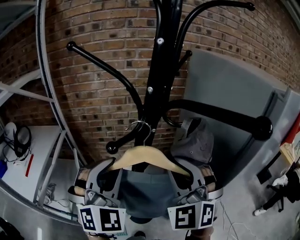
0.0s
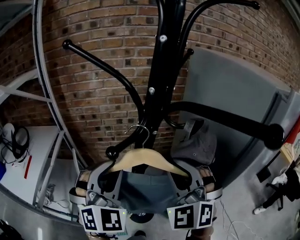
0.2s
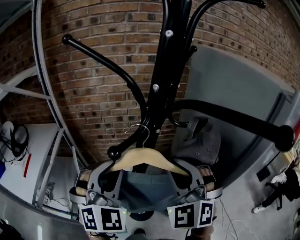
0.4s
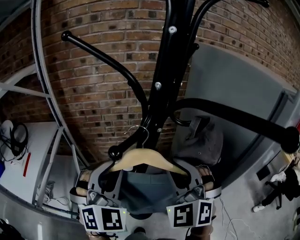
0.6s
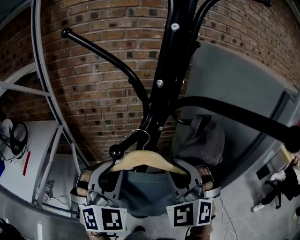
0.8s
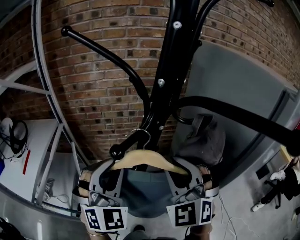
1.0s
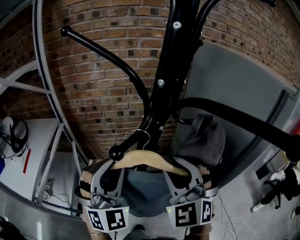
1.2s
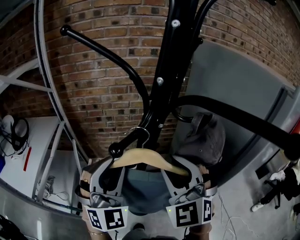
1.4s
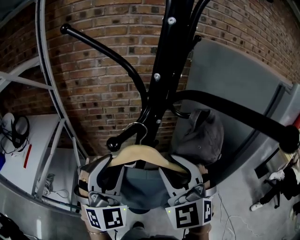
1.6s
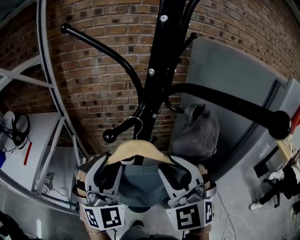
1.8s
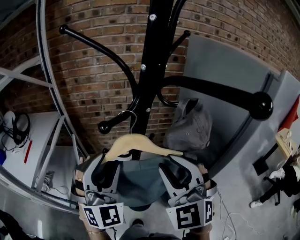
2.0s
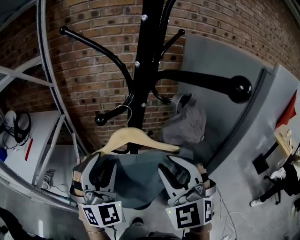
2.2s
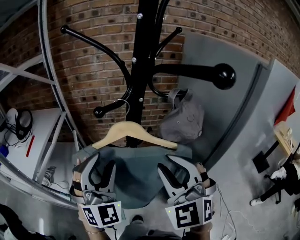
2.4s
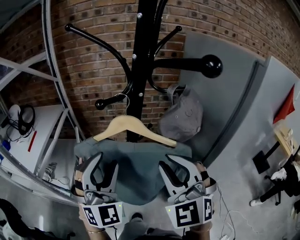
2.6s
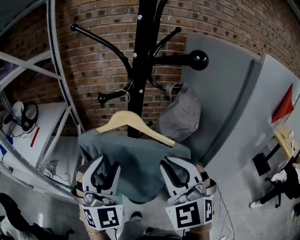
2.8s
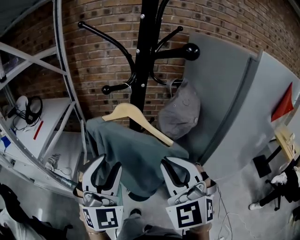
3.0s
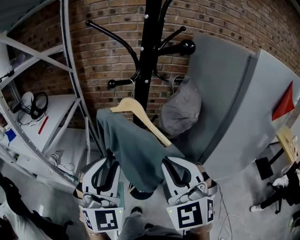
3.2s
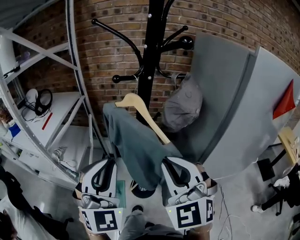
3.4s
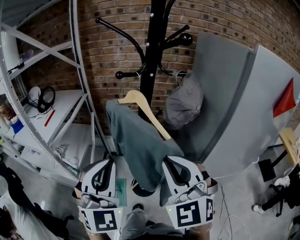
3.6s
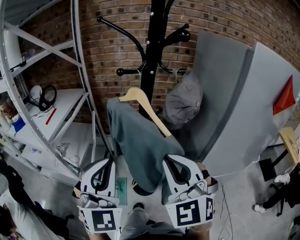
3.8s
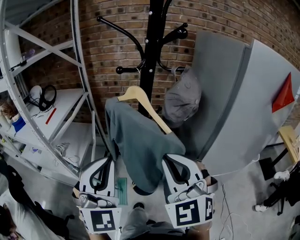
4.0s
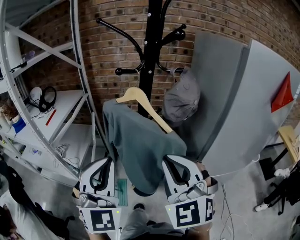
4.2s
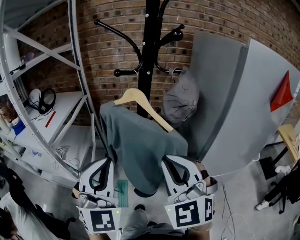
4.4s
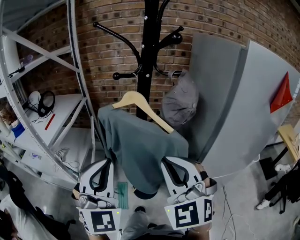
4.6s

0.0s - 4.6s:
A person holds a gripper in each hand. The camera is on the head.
0.0s - 1.6s: The grippers move only a little.
1.6s - 3.0s: The grippers both shift backward by about 15 cm. The right gripper closes up.
3.0s - 4.6s: The grippers both shift backward by about 5 cm. The left gripper closes.

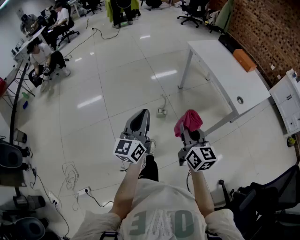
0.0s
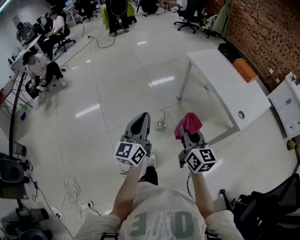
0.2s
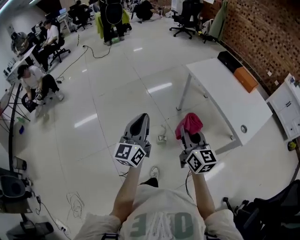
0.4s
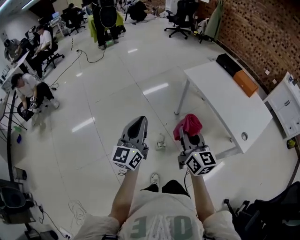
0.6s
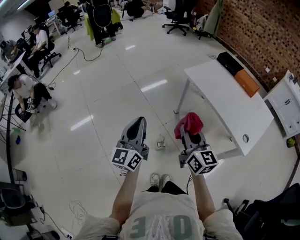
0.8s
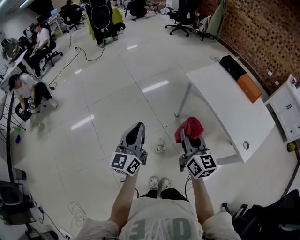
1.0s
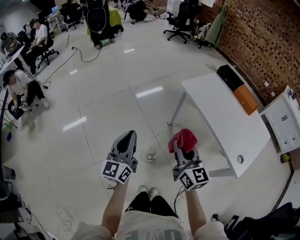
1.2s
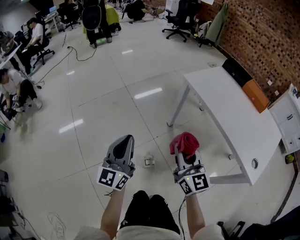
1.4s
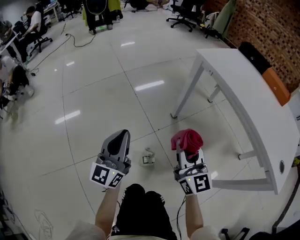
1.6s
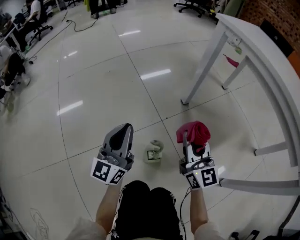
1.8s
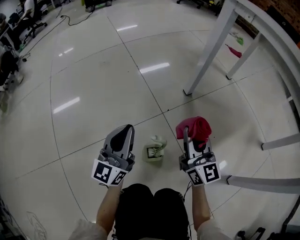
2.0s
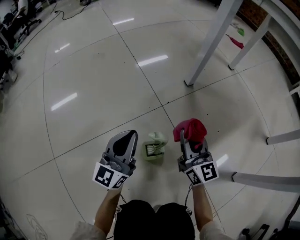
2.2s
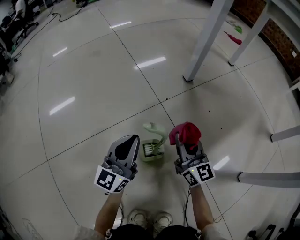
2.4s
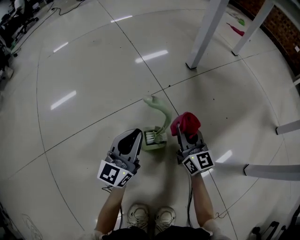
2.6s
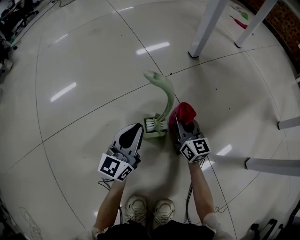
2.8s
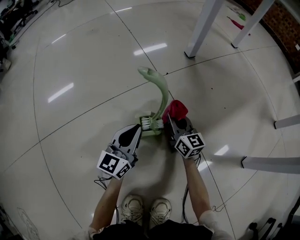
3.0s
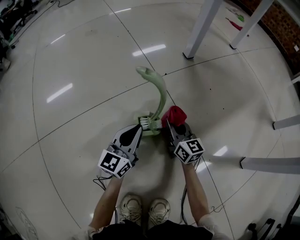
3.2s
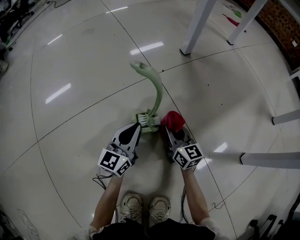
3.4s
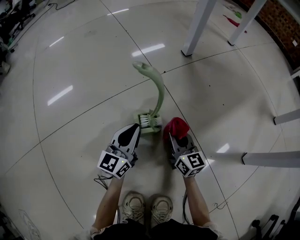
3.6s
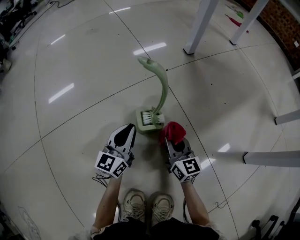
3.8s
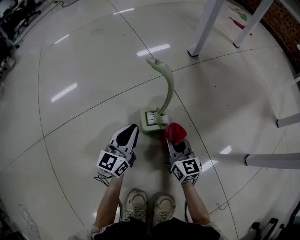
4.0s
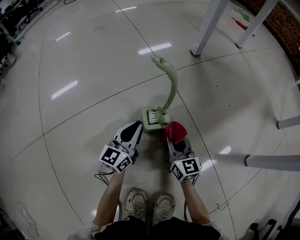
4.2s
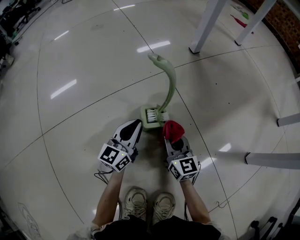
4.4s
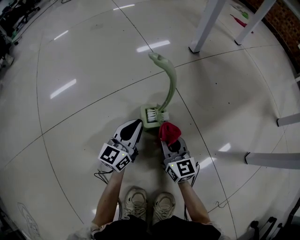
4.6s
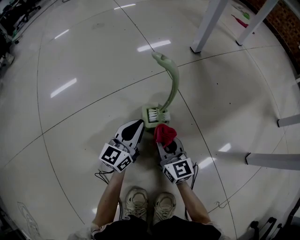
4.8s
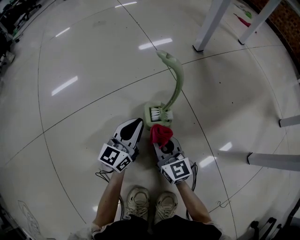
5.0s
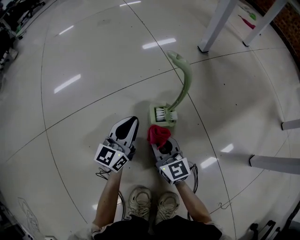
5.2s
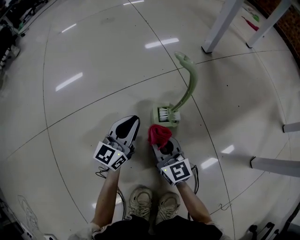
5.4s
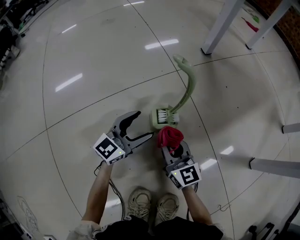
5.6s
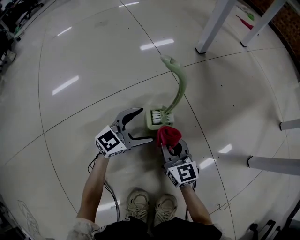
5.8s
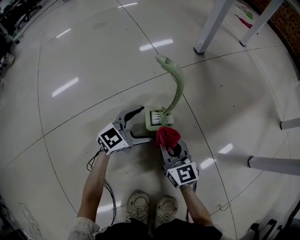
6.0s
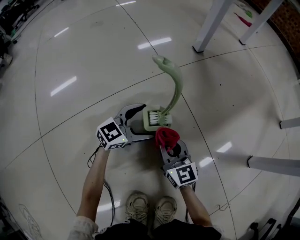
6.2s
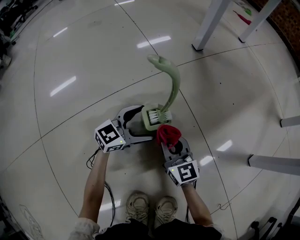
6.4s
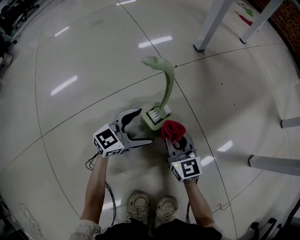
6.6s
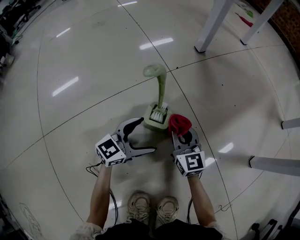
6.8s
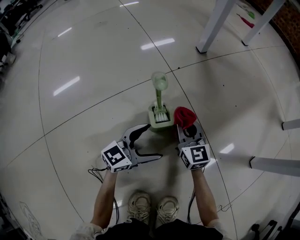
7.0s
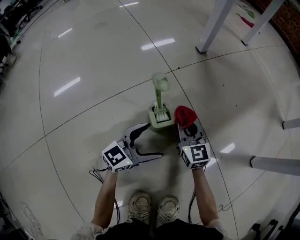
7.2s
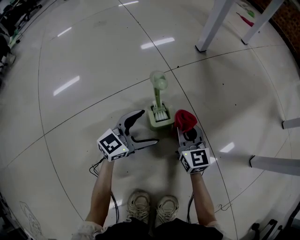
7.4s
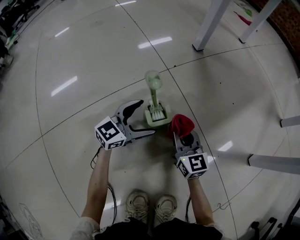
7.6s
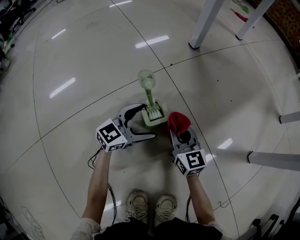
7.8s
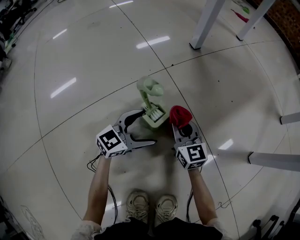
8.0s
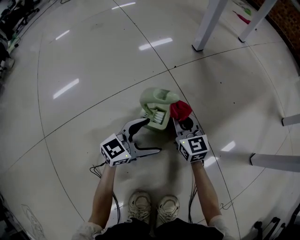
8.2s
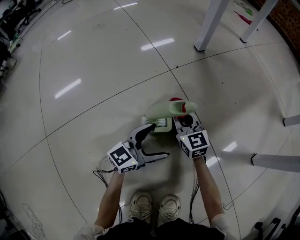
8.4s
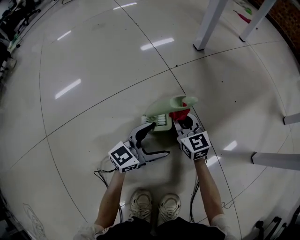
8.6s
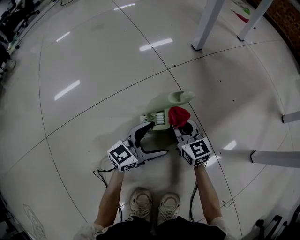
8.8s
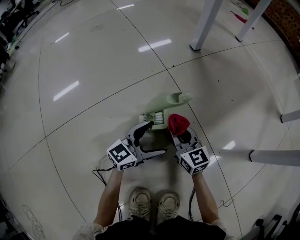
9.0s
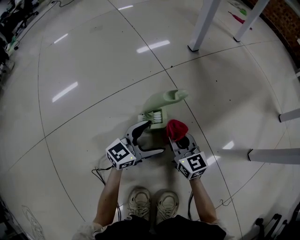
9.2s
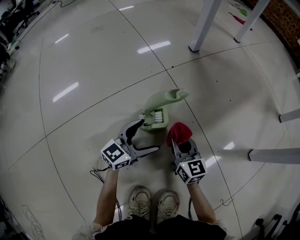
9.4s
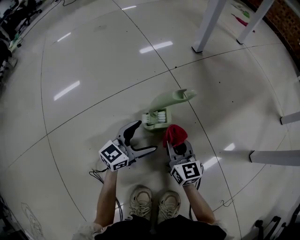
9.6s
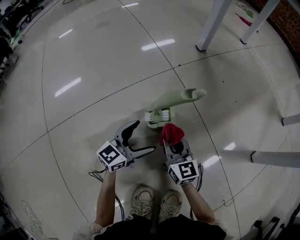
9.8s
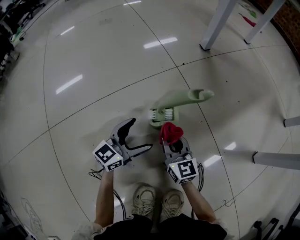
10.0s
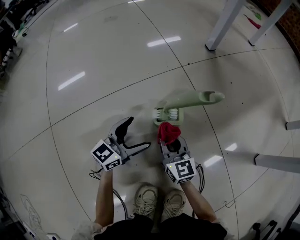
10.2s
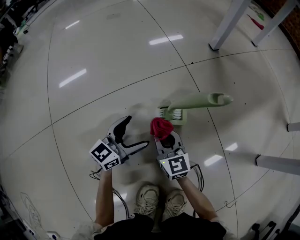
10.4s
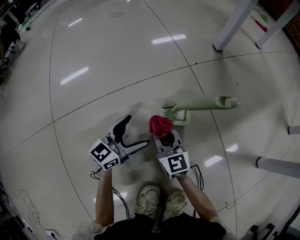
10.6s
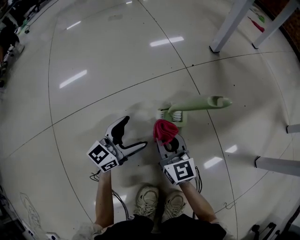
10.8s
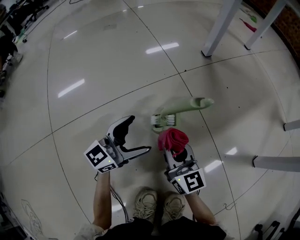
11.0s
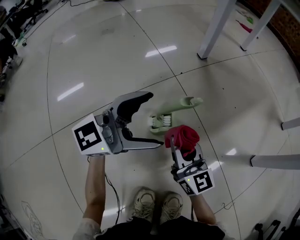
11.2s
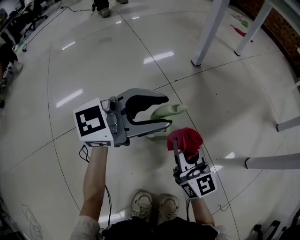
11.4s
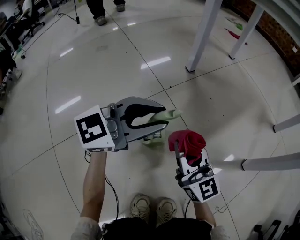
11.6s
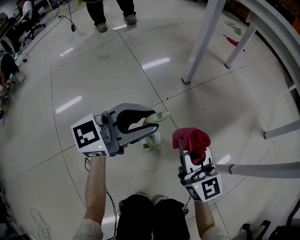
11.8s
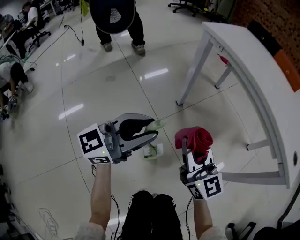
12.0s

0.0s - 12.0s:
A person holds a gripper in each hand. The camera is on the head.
0.0s - 1.6s: Both grippers are carried forward, some 50 cm. Both grippers travel together downward, approximately 30 cm. The right gripper turns by approximately 20 degrees.
1.6s - 3.0s: The grippers both shift downward by some 60 cm. The right gripper rotates roughly 20 degrees.
3.0s - 4.4s: The right gripper is displaced backward by some 10 cm.
4.4s - 6.0s: The left gripper turns by approximately 40 degrees, and opens up.
6.0s - 7.6s: The right gripper is displaced forward by about 5 cm.
7.6s - 9.0s: The left gripper is displaced backward and to the right by some 10 cm.
9.0s - 10.4s: The right gripper moves to the left and backward, approximately 15 cm; the left gripper travels to the left by some 15 cm.
10.4s - 12.0s: The grippers both shift upward by about 60 cm. The left gripper rotates some 30 degrees, and closes its fingers; the right gripper swivels approximately 20 degrees.

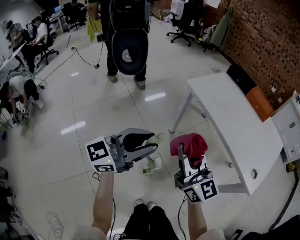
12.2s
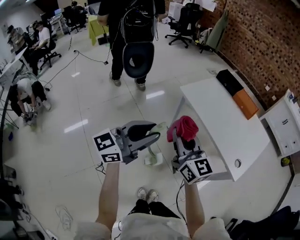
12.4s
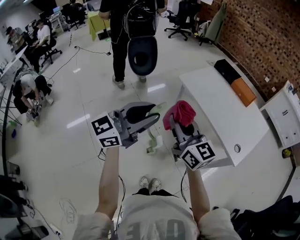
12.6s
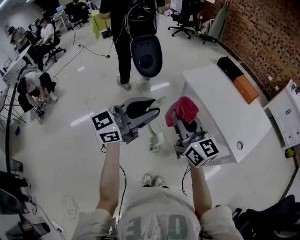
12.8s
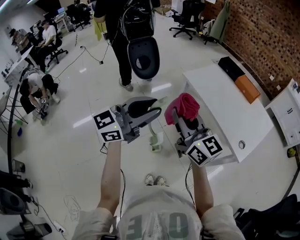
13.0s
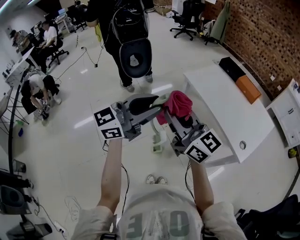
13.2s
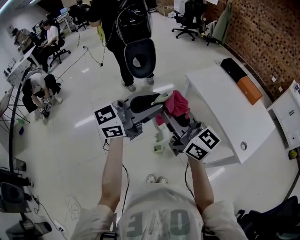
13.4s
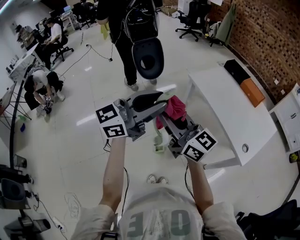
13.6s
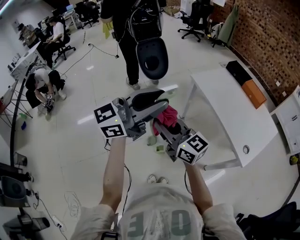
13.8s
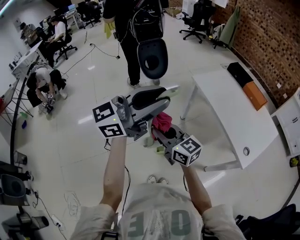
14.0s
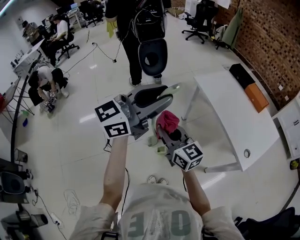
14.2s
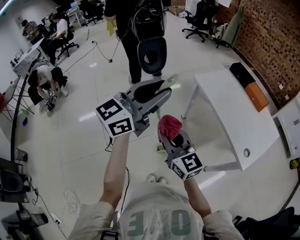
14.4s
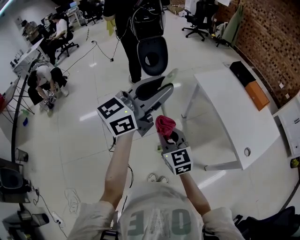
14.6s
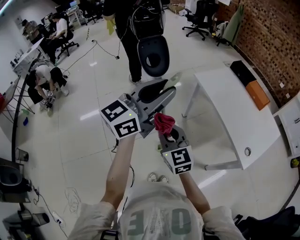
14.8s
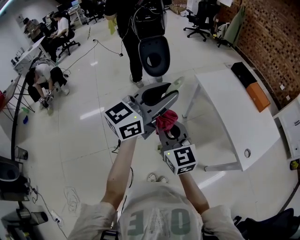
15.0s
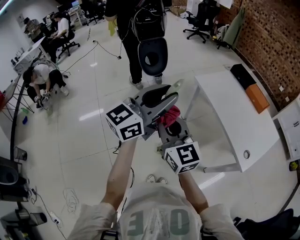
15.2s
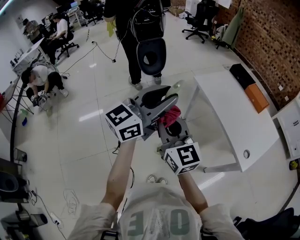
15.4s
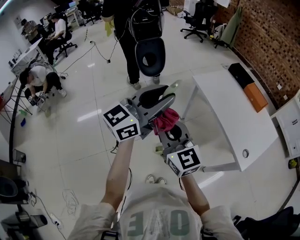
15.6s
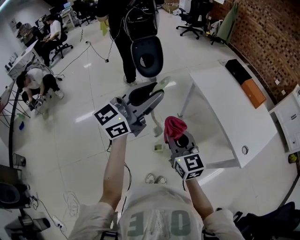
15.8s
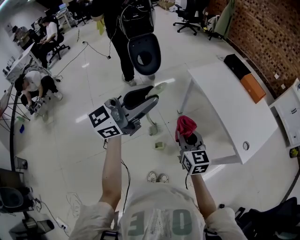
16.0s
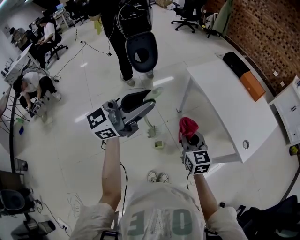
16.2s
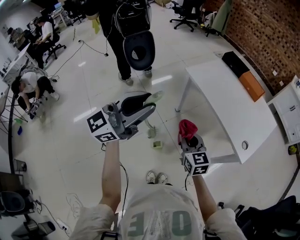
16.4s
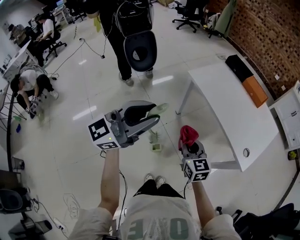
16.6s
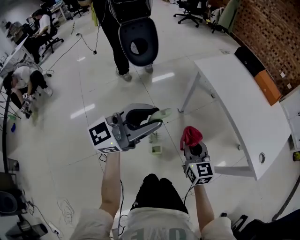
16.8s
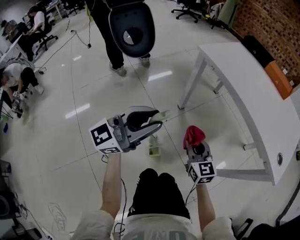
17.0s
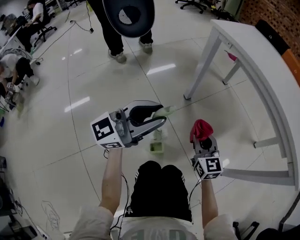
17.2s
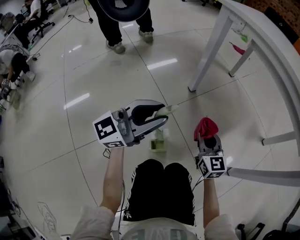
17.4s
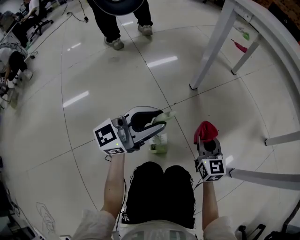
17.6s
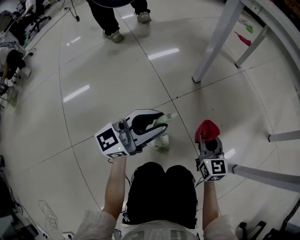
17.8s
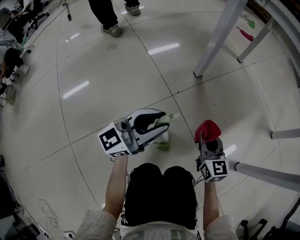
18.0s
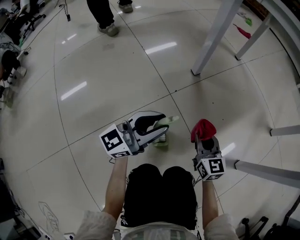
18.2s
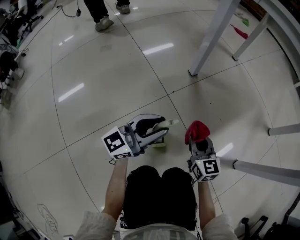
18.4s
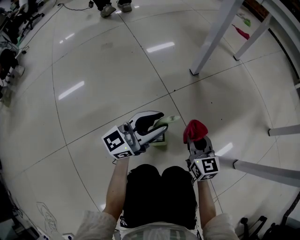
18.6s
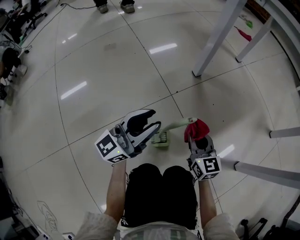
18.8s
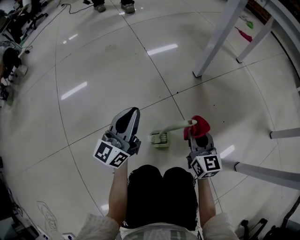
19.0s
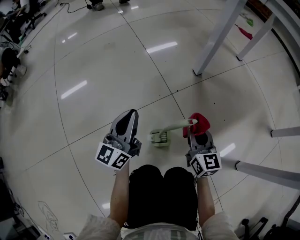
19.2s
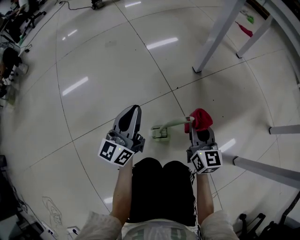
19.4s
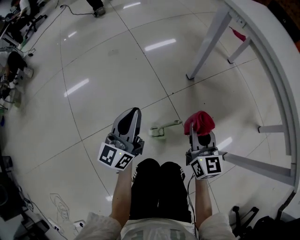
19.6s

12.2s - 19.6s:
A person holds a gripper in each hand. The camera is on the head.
12.2s - 13.6s: The right gripper heads upward and backward, covering approximately 25 cm, and turns by about 30 degrees; the left gripper heads upward, covering some 25 cm.
13.6s - 15.2s: The right gripper moves some 10 cm downward and comes back, and changes its angle by some 20 degrees.
15.2s - 16.6s: The right gripper travels downward and to the right by about 25 cm, and changes its angle by about 30 degrees; the left gripper heads downward, covering some 5 cm.
16.6s - 18.2s: Both grippers move downward, some 70 cm.
18.2s - 19.6s: The left gripper moves upward and to the left, some 20 cm, and changes its angle by about 40 degrees. Meanwhile the right gripper heads upward, covering approximately 20 cm.
